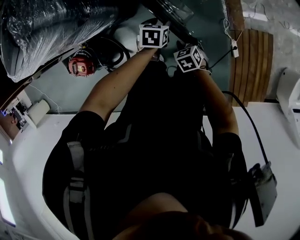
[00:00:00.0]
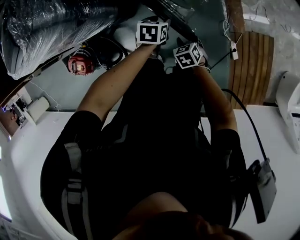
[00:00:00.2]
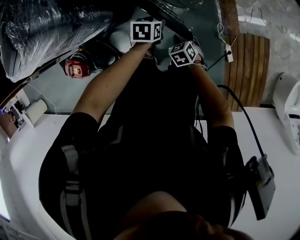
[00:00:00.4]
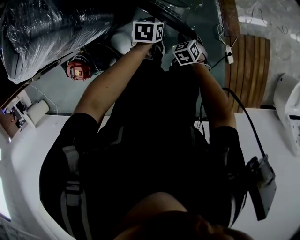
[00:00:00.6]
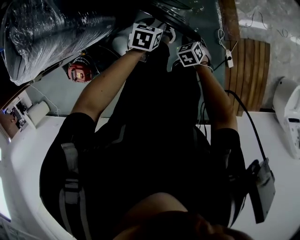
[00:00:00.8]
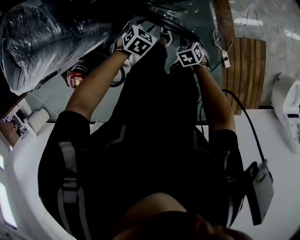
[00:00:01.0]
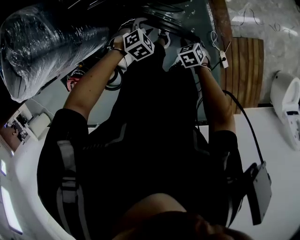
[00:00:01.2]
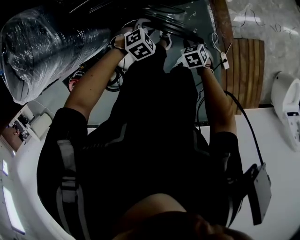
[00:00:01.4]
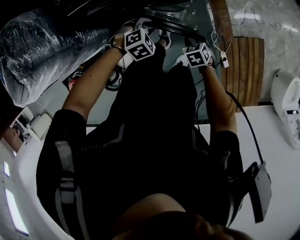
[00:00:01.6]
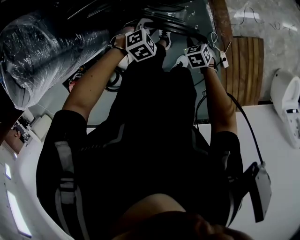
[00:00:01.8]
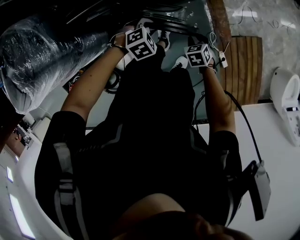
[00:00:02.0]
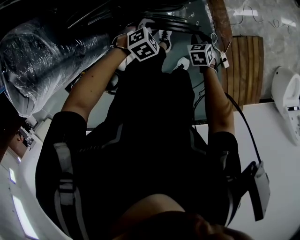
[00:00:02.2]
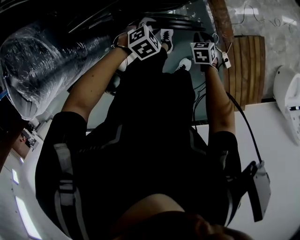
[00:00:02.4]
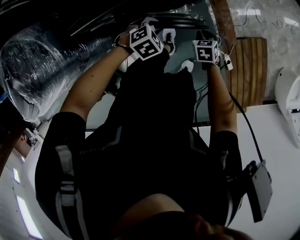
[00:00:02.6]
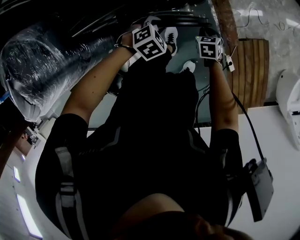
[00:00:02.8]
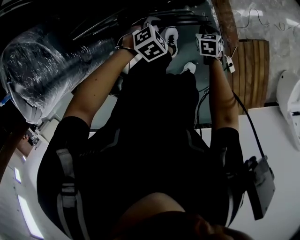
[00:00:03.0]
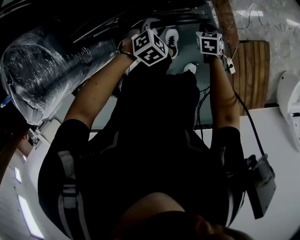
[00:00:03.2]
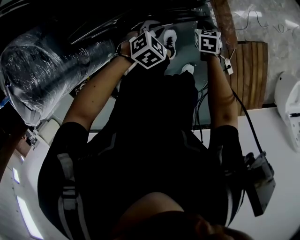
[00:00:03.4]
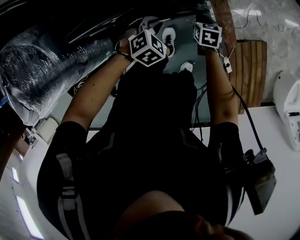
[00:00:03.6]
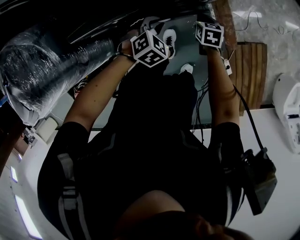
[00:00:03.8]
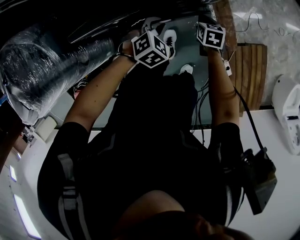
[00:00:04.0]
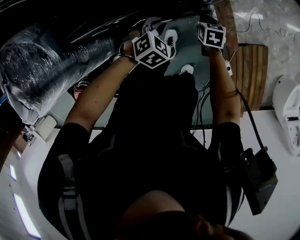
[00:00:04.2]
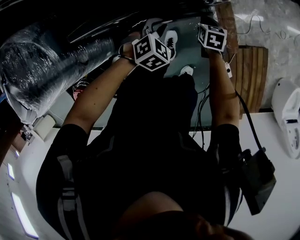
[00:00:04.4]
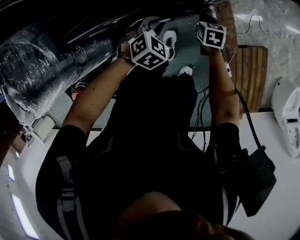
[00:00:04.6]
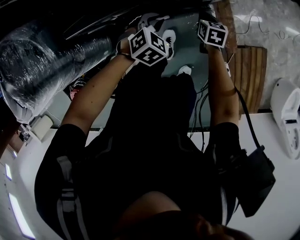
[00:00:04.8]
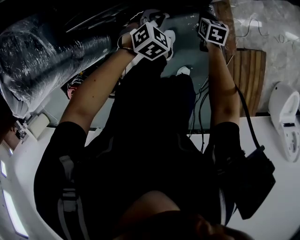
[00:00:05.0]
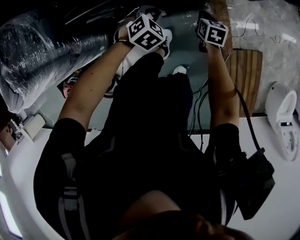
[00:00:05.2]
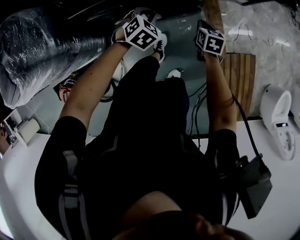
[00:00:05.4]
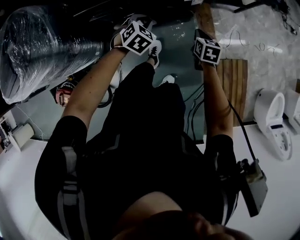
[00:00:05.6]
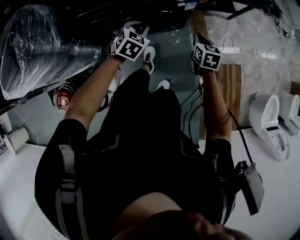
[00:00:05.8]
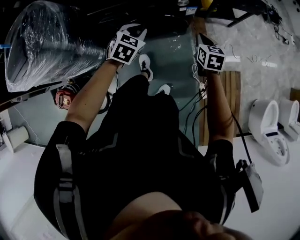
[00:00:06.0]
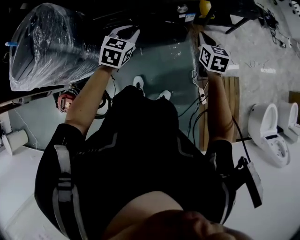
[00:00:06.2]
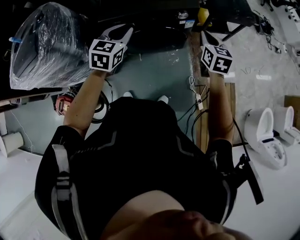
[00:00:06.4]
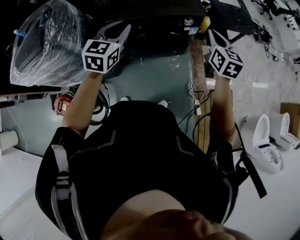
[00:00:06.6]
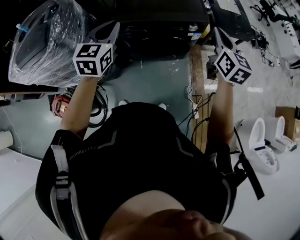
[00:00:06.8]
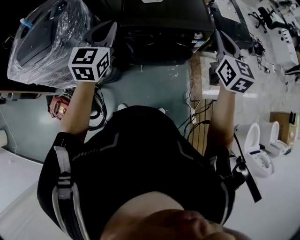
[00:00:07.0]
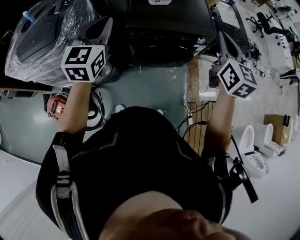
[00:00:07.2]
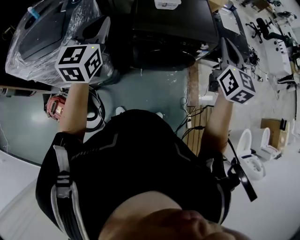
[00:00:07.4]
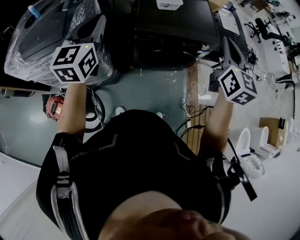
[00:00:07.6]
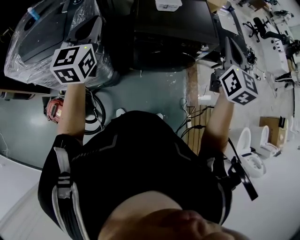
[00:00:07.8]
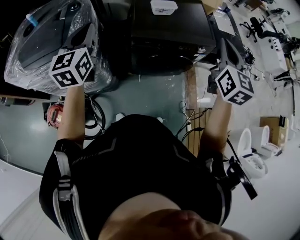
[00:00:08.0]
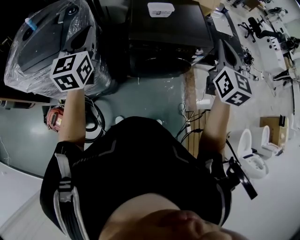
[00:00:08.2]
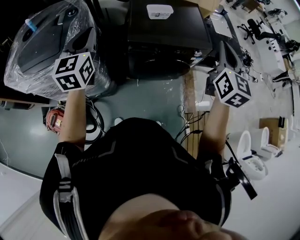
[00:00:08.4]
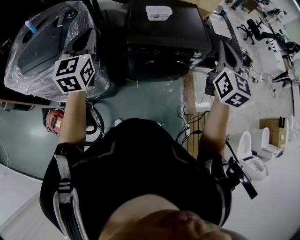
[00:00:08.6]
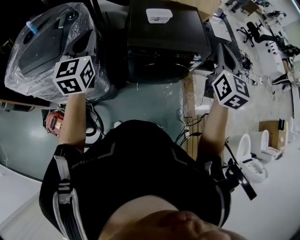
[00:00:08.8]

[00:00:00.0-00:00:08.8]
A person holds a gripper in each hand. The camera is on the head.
00:00:00.0 to 00:00:01.4: The right gripper shifts by roughly 20 cm, while the left gripper changes place by some 15 cm, and rolls clockwise, seen from behind, by some 60 degrees.
00:00:01.4 to 00:00:03.0: The left gripper changes place by roughly 10 cm, while the right gripper moves about 15 cm, and rotates approximately 20 degrees.
00:00:03.0 to 00:00:04.4: The right gripper changes place by some 10 cm.
00:00:04.4 to 00:00:05.8: The left gripper heads upward and backward, covering about 15 cm, and turns by roughly 20 degrees, while the right gripper is displaced upward and backward by some 20 cm.
00:00:05.8 to 00:00:07.4: The grippers both shift upward and to the left by approximately 50 cm. The left gripper tilts its fingers some 50 degrees upward. Meanwhile the right gripper angles its fingers upward, by approximately 30 degrees.

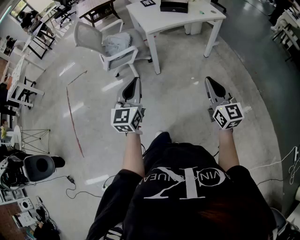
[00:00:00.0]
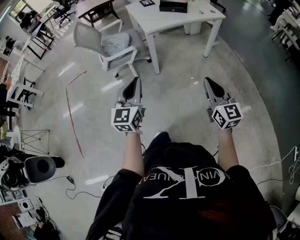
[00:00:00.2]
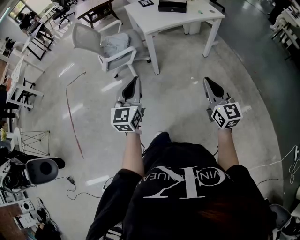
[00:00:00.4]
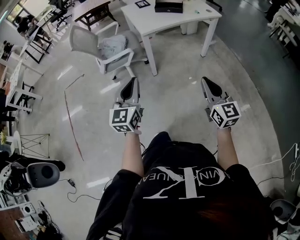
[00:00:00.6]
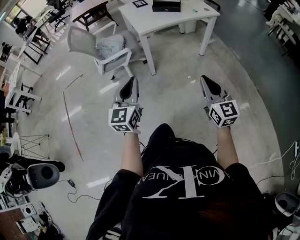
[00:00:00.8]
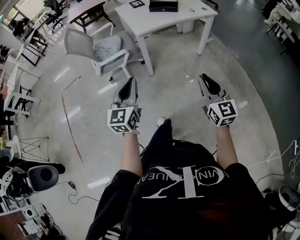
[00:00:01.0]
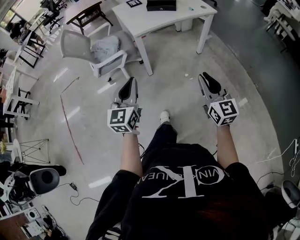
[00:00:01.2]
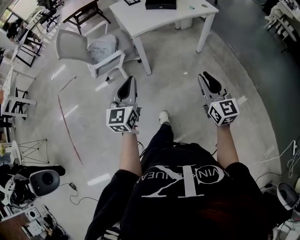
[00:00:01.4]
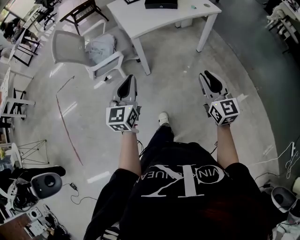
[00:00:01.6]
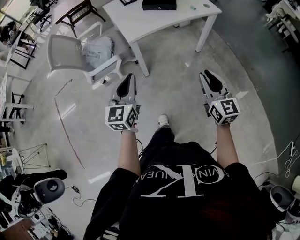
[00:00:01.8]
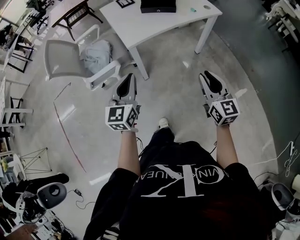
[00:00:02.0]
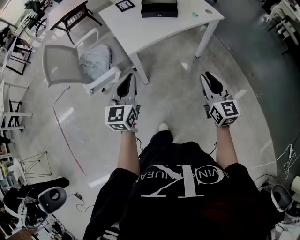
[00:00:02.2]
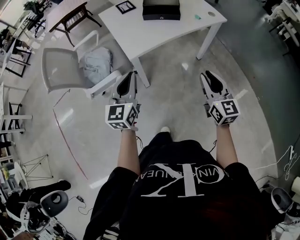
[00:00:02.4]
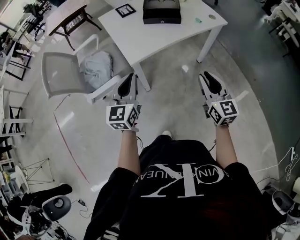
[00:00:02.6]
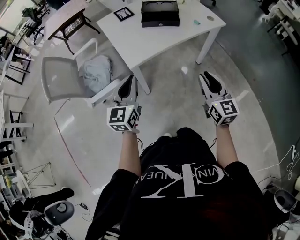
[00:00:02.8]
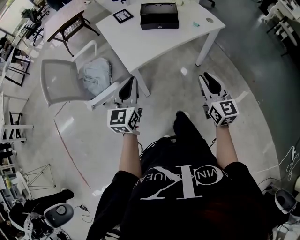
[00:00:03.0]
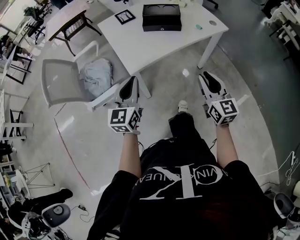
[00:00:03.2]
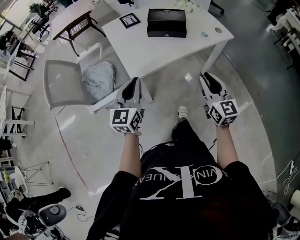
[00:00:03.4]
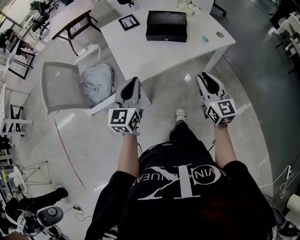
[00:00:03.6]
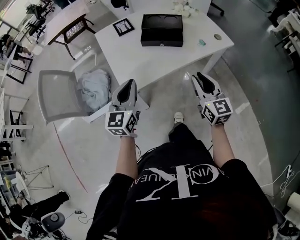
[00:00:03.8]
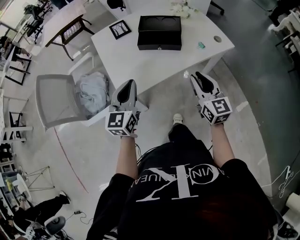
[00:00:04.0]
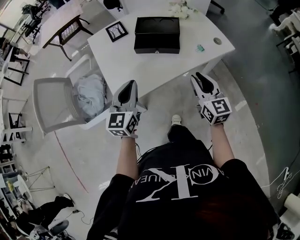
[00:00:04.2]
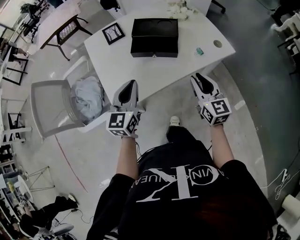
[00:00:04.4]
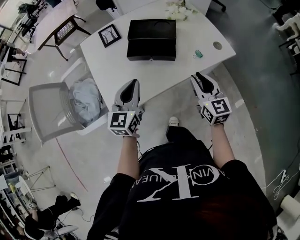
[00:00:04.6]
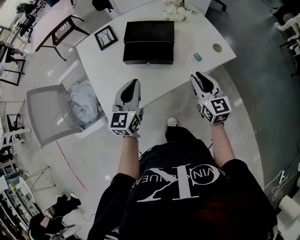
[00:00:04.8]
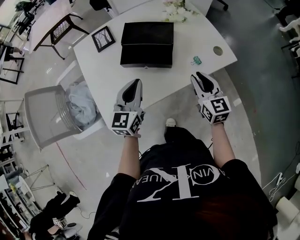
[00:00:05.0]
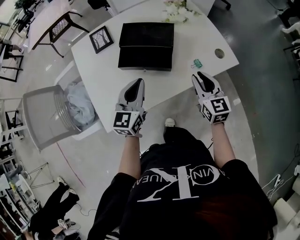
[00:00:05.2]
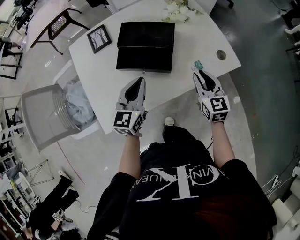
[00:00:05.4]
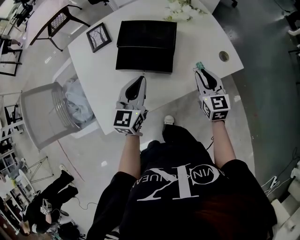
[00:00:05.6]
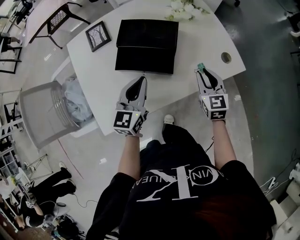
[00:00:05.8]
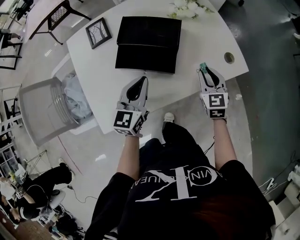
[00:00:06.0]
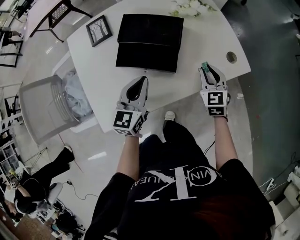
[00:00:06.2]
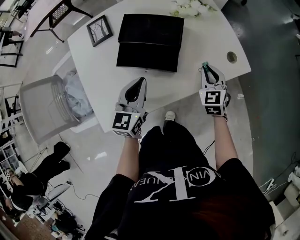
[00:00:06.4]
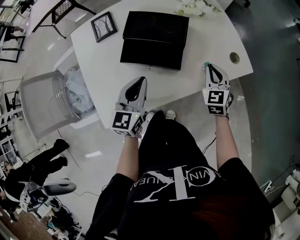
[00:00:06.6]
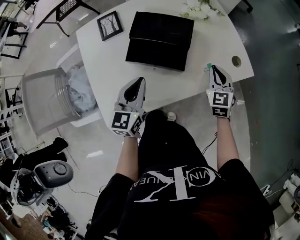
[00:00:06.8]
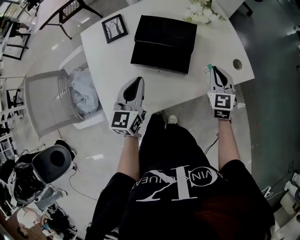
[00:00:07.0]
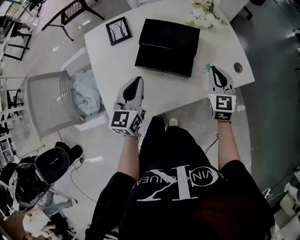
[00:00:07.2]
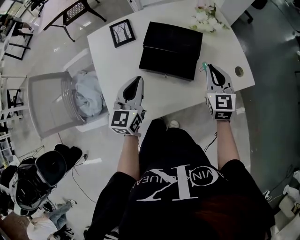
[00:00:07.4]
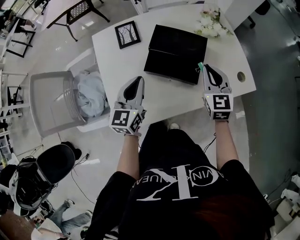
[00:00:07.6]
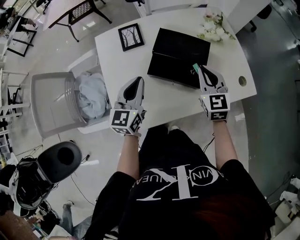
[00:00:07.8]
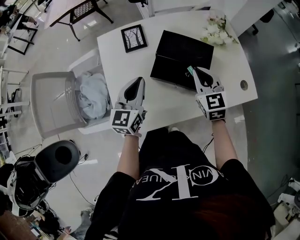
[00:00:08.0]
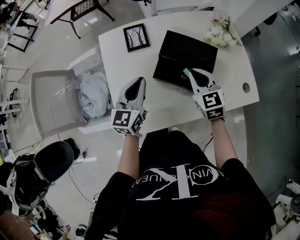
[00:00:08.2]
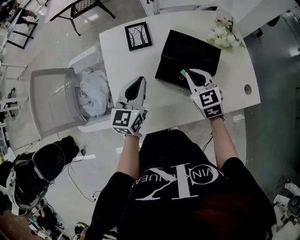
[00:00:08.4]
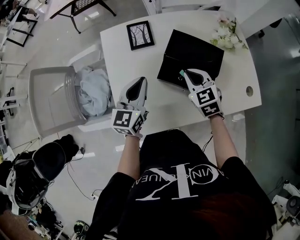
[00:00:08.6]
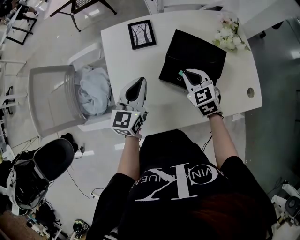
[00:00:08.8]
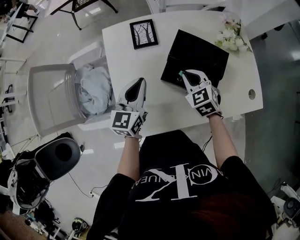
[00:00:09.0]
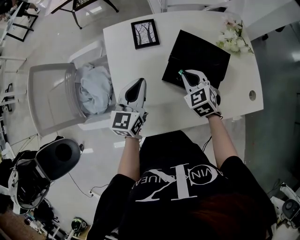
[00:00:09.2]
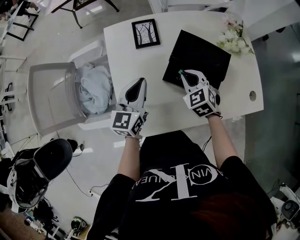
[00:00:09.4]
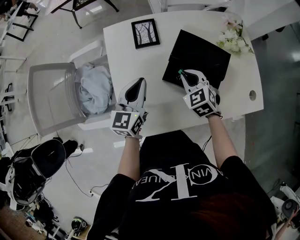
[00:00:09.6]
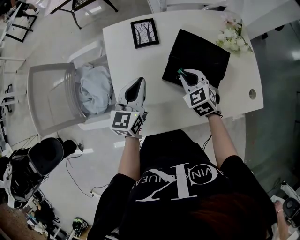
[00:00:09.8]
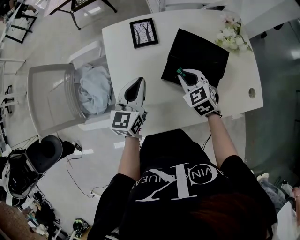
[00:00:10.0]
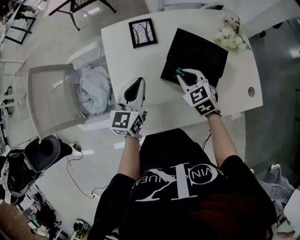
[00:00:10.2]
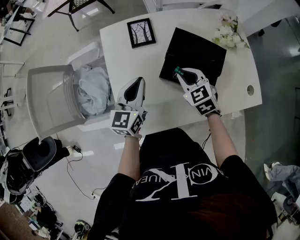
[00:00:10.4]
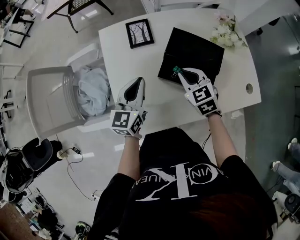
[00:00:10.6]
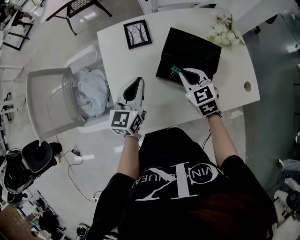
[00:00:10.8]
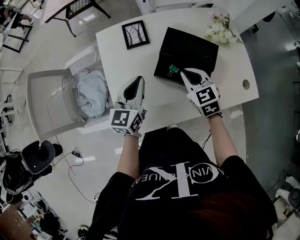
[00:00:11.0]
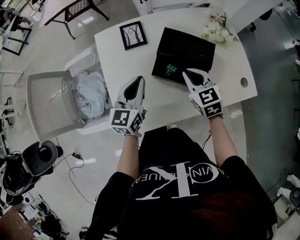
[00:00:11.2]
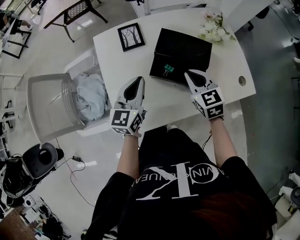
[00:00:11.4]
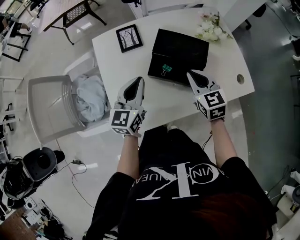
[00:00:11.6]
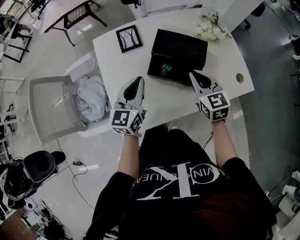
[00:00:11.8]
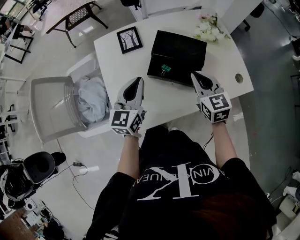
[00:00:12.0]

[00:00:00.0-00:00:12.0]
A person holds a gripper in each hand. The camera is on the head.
00:00:00.0 to 00:00:01.6: The two grippers go some 15 cm forward.
00:00:01.6 to 00:00:03.0: Both grippers travel together forward, roughly 25 cm.
00:00:03.0 to 00:00:04.4: The grippers both shift forward by some 25 cm.
00:00:04.4 to 00:00:06.0: The left gripper travels forward, to the right and downward by approximately 20 cm; the right gripper shifts about 25 cm forward, downward and to the right, and turns by approximately 20 degrees.
00:00:06.0 to 00:00:07.6: The right gripper shifts roughly 15 cm to the left and upward. The left gripper travels to the left by approximately 10 cm.
00:00:07.6 to 00:00:09.0: The left gripper shifts roughly 5 cm to the left. The right gripper is displaced to the left and downward by about 15 cm, and rotates roughly 30 degrees.
00:00:09.0 to 00:00:10.4: The grippers make only small movements.
00:00:10.4 to 00:00:12.0: The left gripper changes place by some 5 cm; the right gripper goes roughly 15 cm to the right, upward and backward, and rotates some 30 degrees.

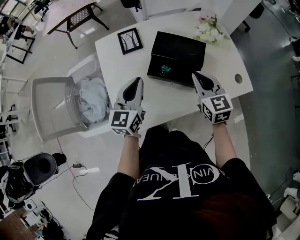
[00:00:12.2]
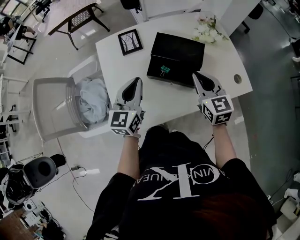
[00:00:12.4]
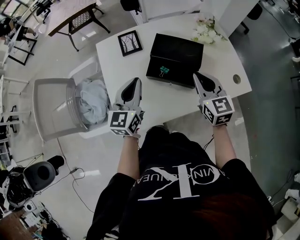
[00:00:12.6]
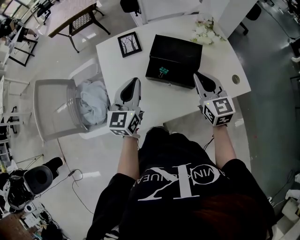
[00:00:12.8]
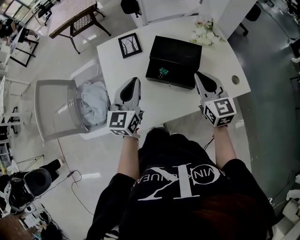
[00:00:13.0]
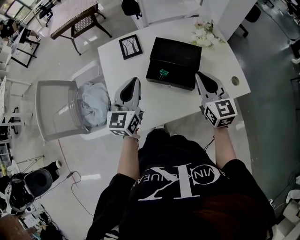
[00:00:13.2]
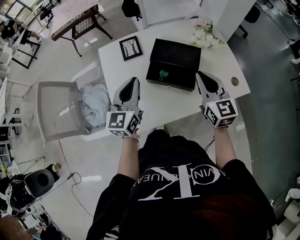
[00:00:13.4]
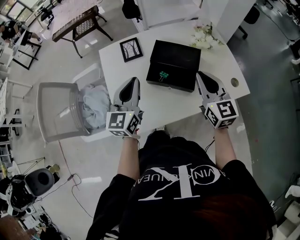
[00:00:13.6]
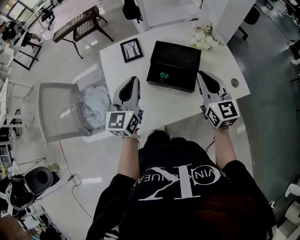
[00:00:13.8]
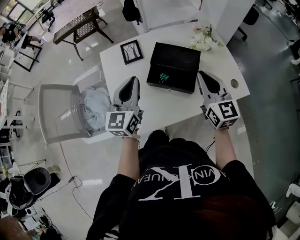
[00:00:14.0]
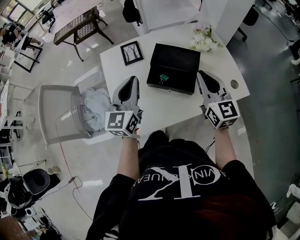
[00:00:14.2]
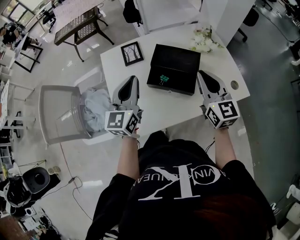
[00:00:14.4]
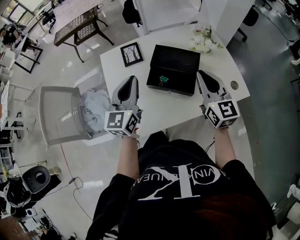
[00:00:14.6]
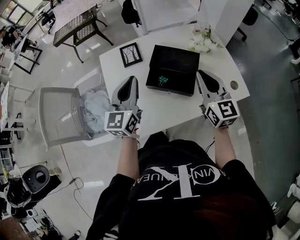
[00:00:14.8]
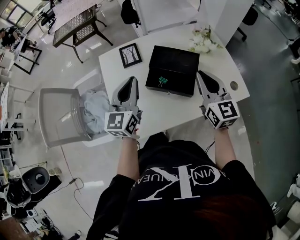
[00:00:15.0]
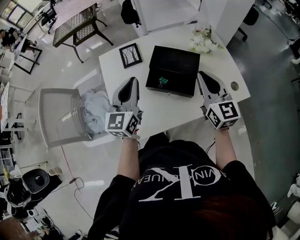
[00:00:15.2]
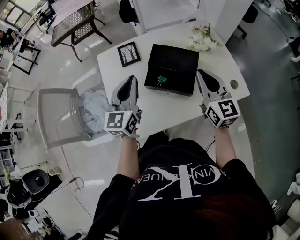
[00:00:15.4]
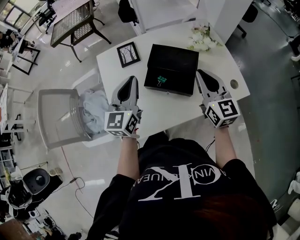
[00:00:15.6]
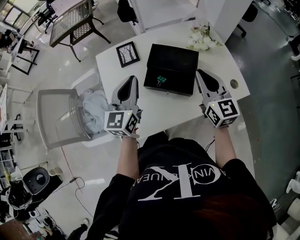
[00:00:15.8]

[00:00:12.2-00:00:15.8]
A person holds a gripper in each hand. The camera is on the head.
00:00:12.2 to 00:00:14.0: The grippers both shift upward by roughly 10 cm.
00:00:14.0 to 00:00:15.8: There are only small adjustments of the grippers.
